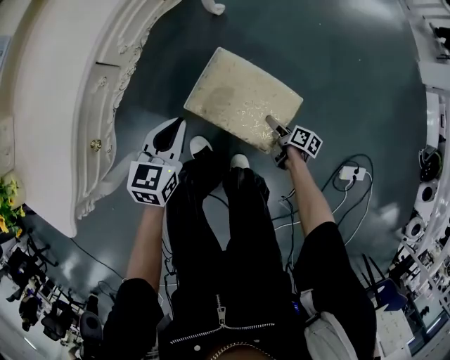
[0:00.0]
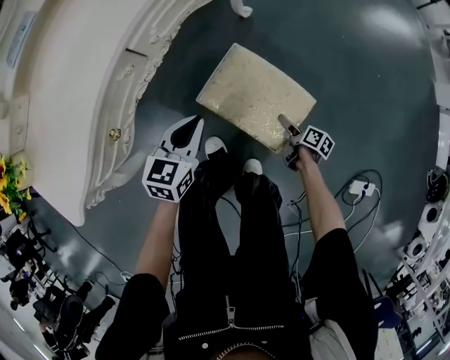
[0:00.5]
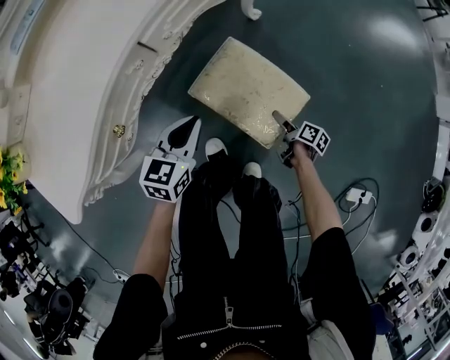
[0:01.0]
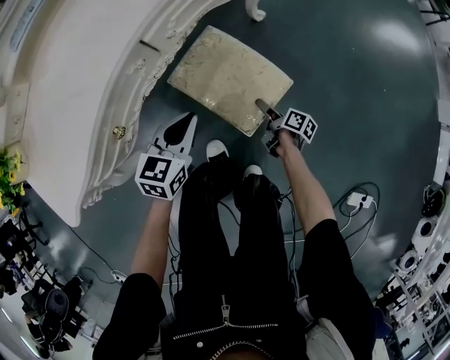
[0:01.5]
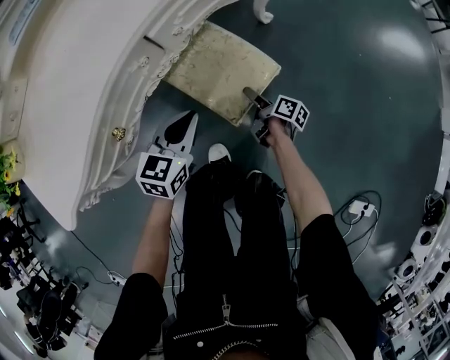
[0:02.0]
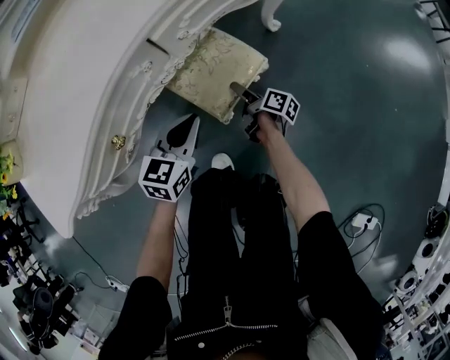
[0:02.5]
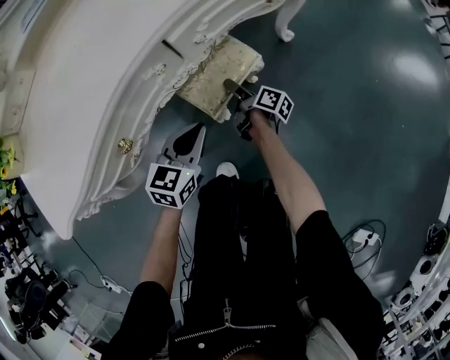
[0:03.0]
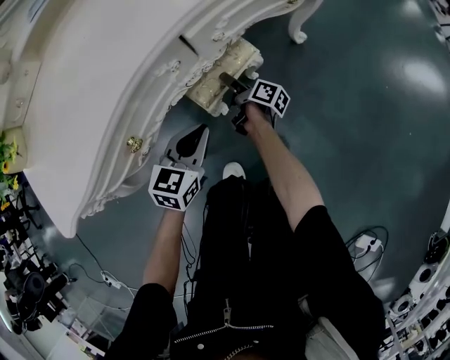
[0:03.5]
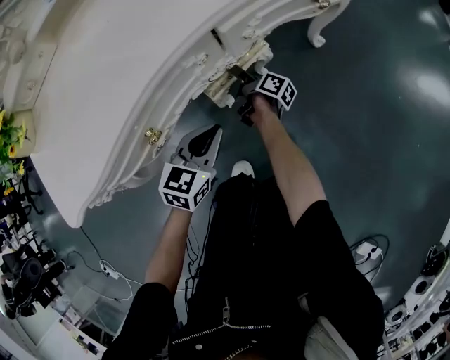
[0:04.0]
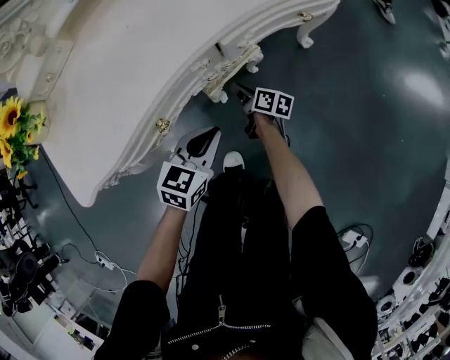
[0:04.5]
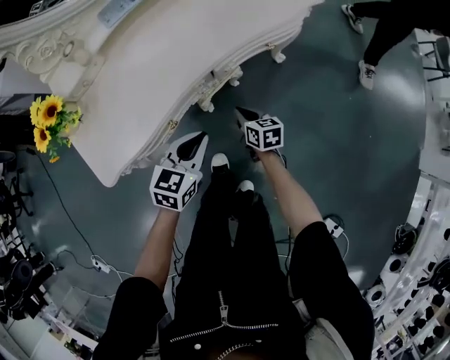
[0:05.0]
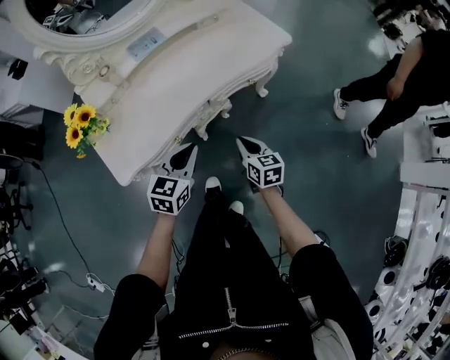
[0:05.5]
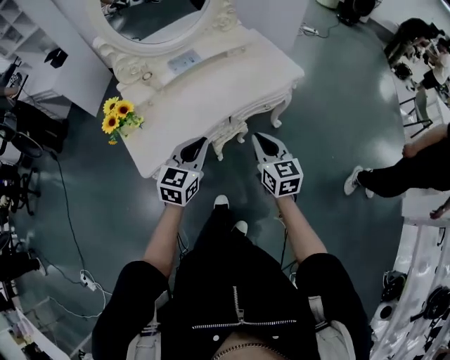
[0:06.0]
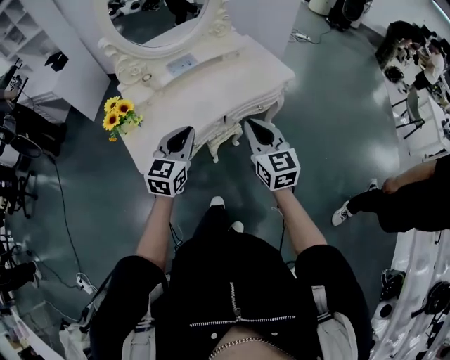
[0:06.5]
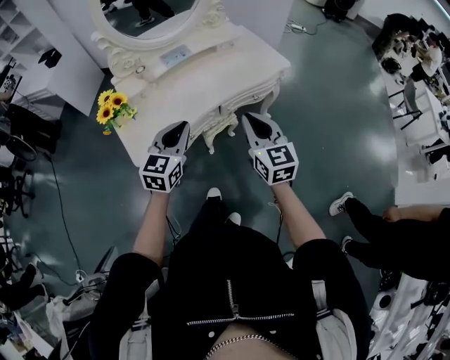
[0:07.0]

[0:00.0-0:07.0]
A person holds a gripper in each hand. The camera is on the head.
0:00.0 to 0:02.0: The left gripper travels to the left by some 10 cm, while the right gripper heads to the left and forward, covering about 30 cm, and turns by about 20 degrees.
0:02.0 to 0:03.5: The right gripper shifts roughly 20 cm to the left and forward. The left gripper goes about 5 cm downward.
0:03.5 to 0:05.0: The right gripper shifts about 25 cm upward and backward, twists about 50 degrees counterclockwise, seen from behind, and closes. Meanwhile the left gripper moves upward, about 20 cm.
0:05.0 to 0:07.0: The right gripper travels upward by roughly 50 cm, and turns by about 40 degrees. The left gripper travels upward by about 30 cm, and changes its angle by roughly 20 degrees.

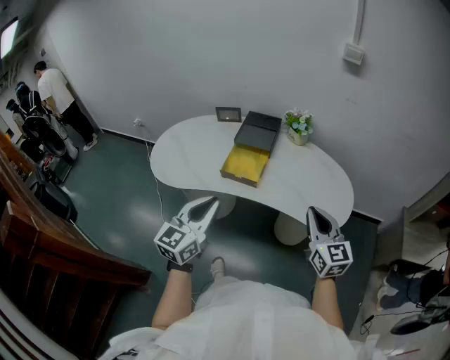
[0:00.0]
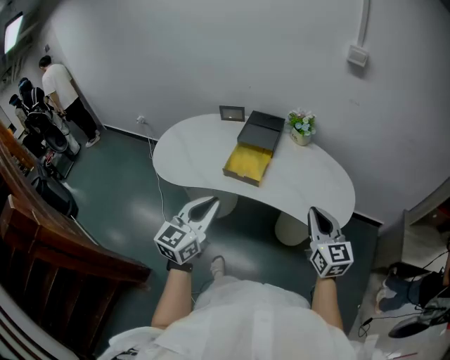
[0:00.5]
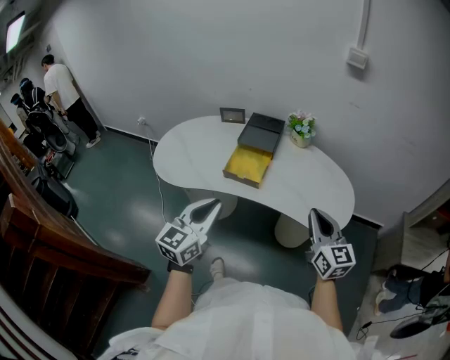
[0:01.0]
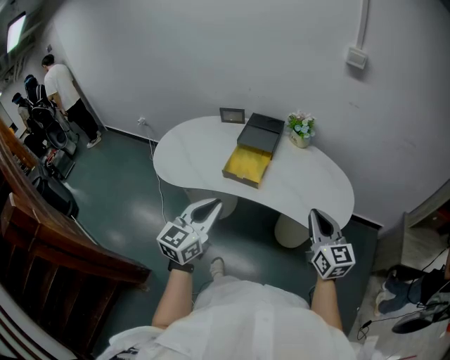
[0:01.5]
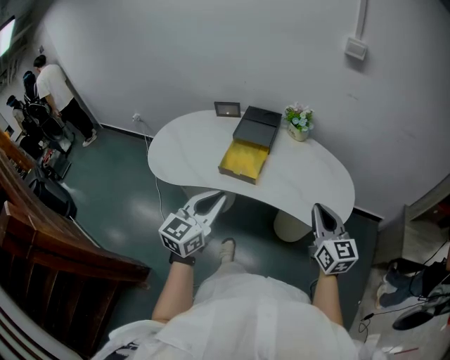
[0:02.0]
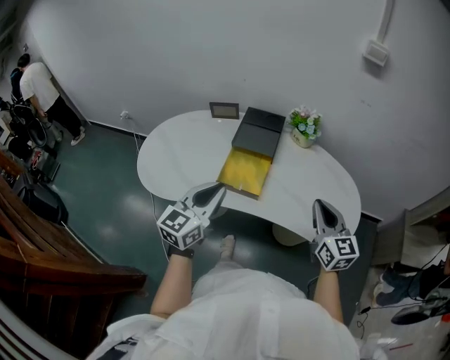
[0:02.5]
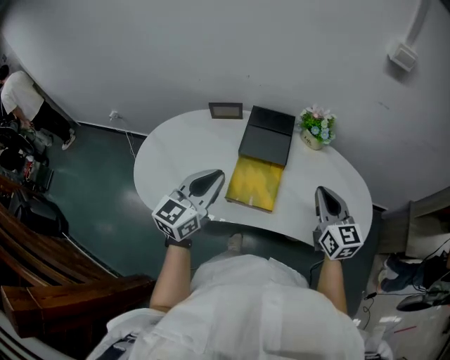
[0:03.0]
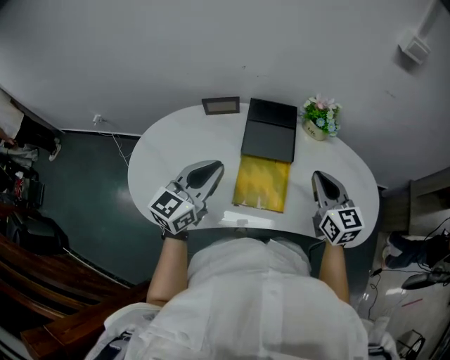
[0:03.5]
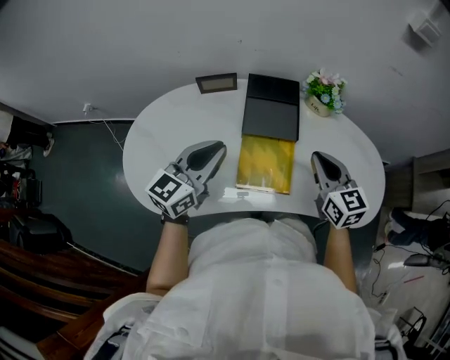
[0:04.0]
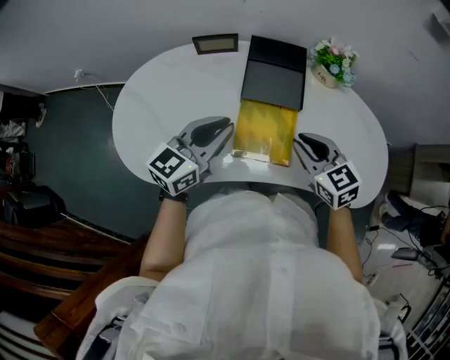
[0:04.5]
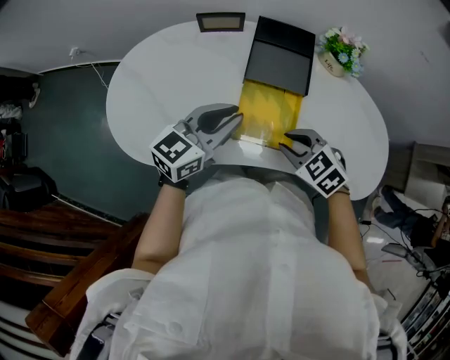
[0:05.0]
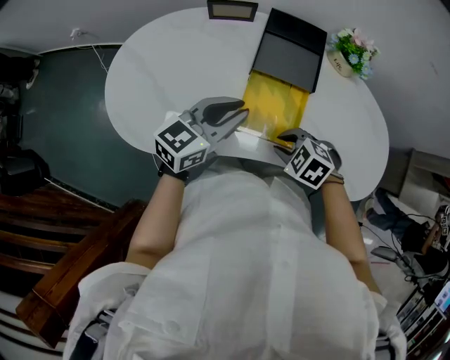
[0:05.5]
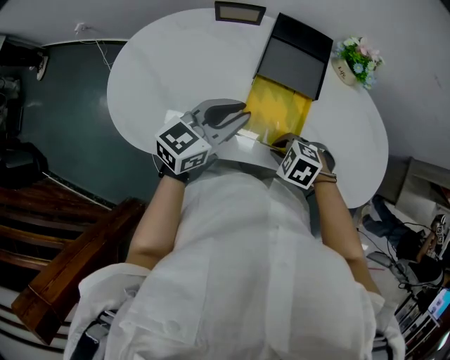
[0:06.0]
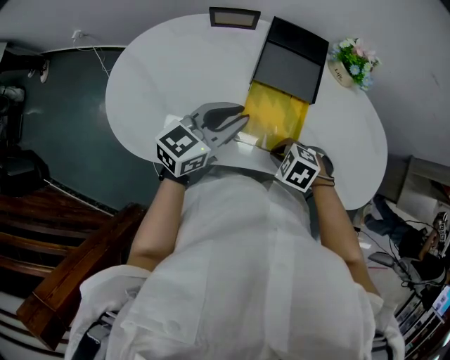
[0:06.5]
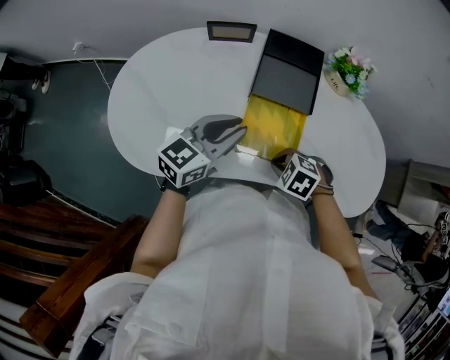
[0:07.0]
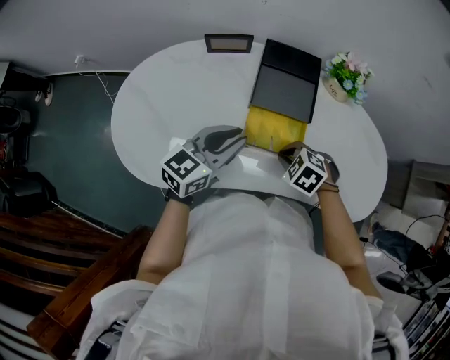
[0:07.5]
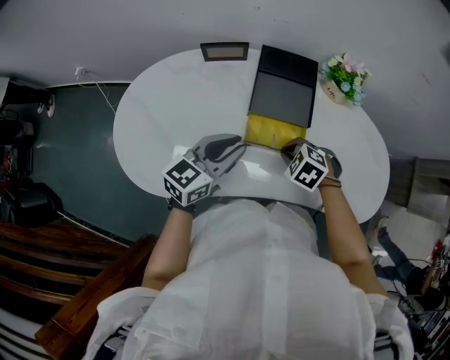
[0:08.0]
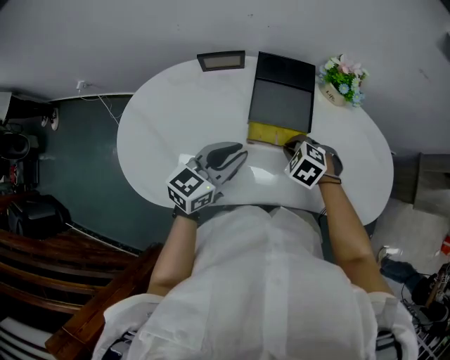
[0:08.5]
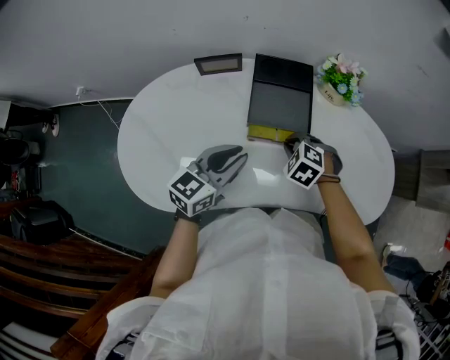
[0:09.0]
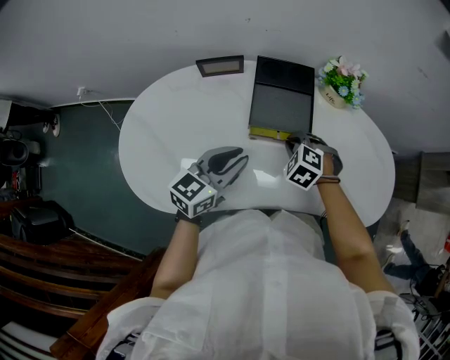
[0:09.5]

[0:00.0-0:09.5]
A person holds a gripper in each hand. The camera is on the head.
0:00.0 to 0:02.0: There are only small adjustments of the grippers.
0:02.0 to 0:04.0: Both grippers move forward and to the left, approximately 35 cm. The left gripper changes its angle by roughly 20 degrees.
0:04.0 to 0:05.5: The right gripper goes about 20 cm downward, to the left and backward, and angles its fingers downward, by approximately 50 degrees. The left gripper goes about 10 cm downward.
0:05.5 to 0:07.5: The right gripper ends up about 5 cm from where it was.
0:07.5 to 0:09.5: The right gripper shifts about 10 cm forward.

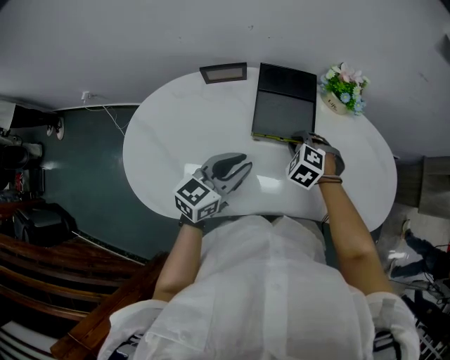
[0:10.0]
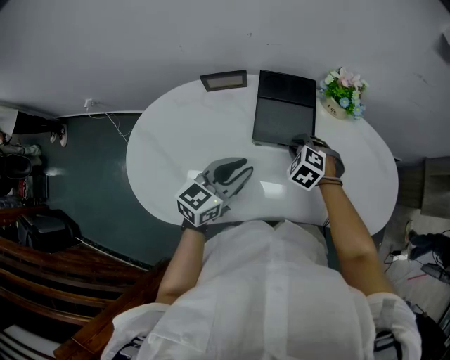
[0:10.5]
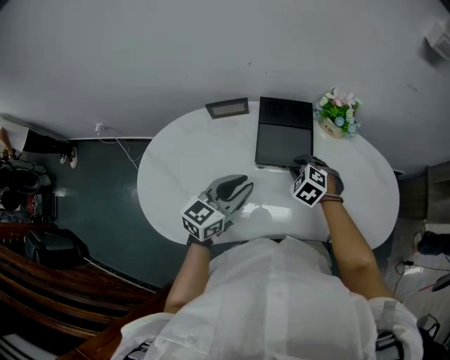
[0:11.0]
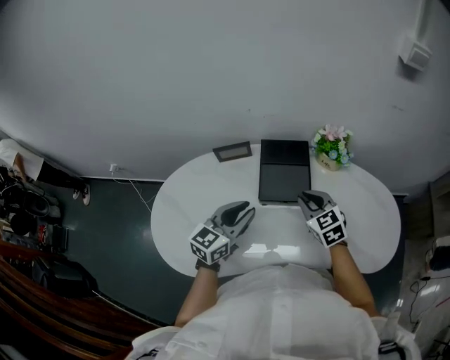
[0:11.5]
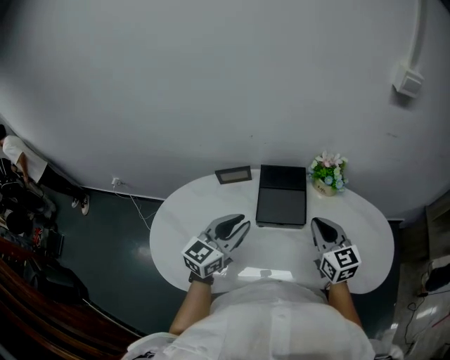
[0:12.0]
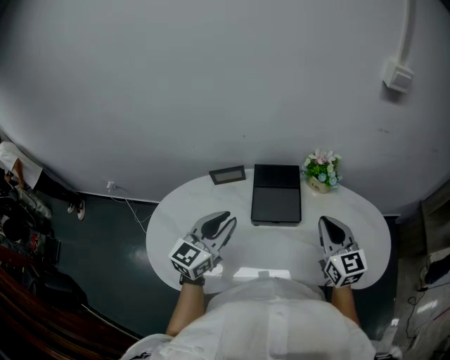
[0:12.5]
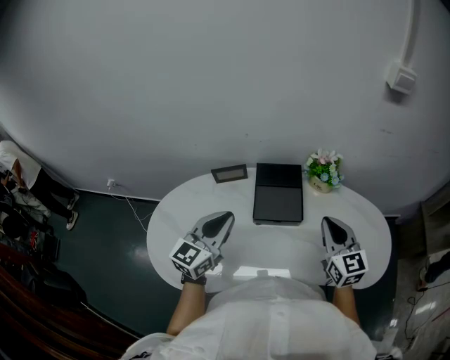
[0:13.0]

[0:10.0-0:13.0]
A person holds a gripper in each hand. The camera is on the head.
0:10.0 to 0:11.5: The left gripper is displaced upward by approximately 5 cm. Meanwhile the right gripper goes some 10 cm upward, and angles its fingers upward, by some 30 degrees.
0:11.5 to 0:13.0: The right gripper shifts approximately 15 cm upward and to the right, and changes its angle by some 30 degrees, while the left gripper moves upward, about 5 cm.

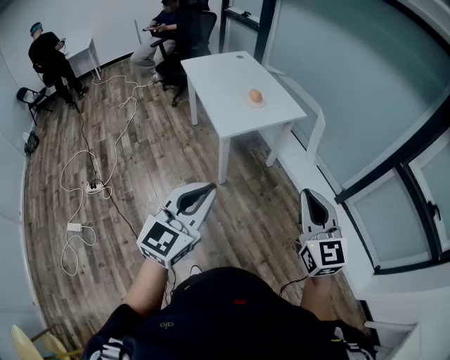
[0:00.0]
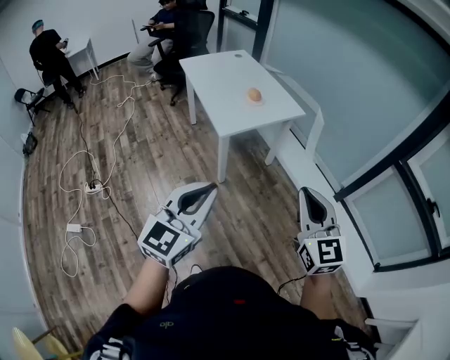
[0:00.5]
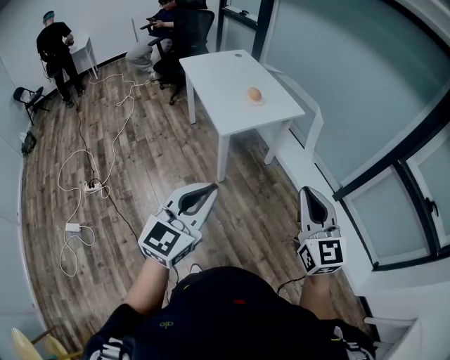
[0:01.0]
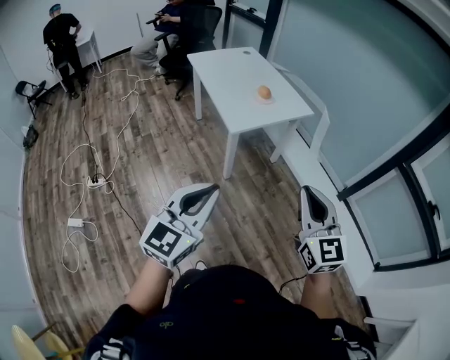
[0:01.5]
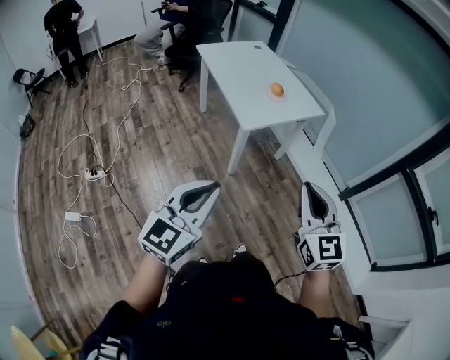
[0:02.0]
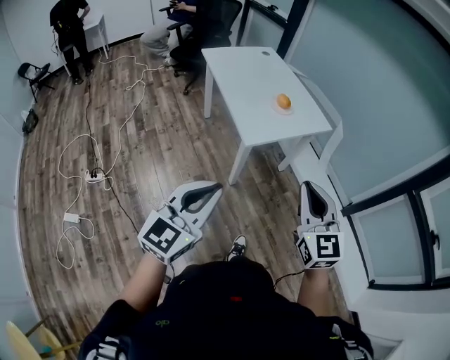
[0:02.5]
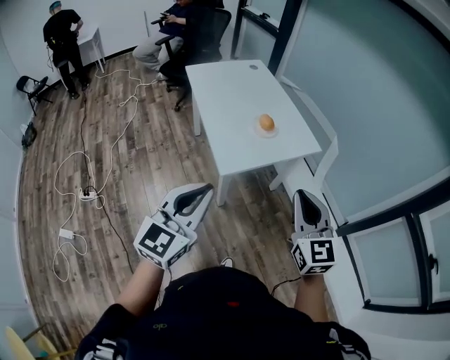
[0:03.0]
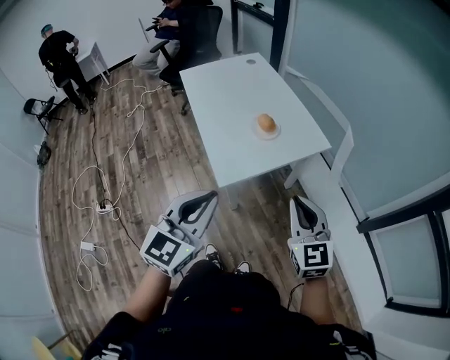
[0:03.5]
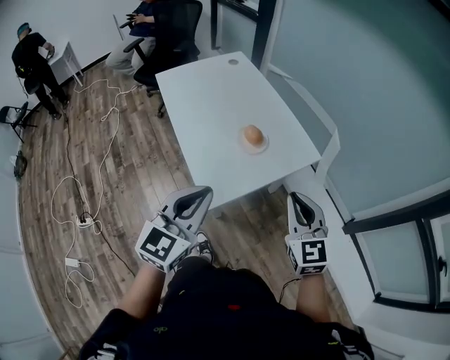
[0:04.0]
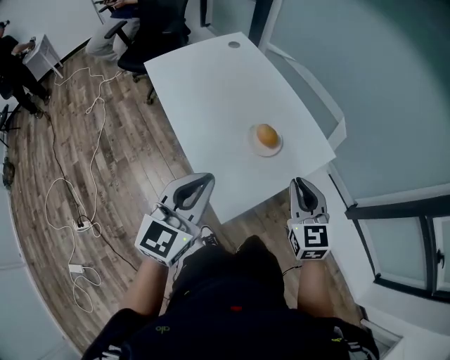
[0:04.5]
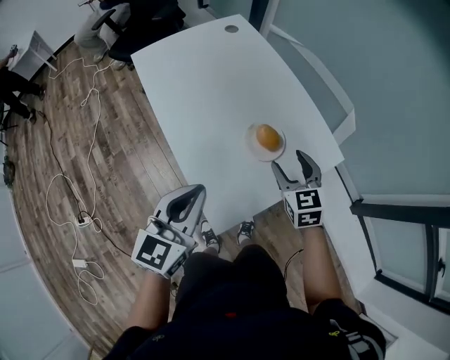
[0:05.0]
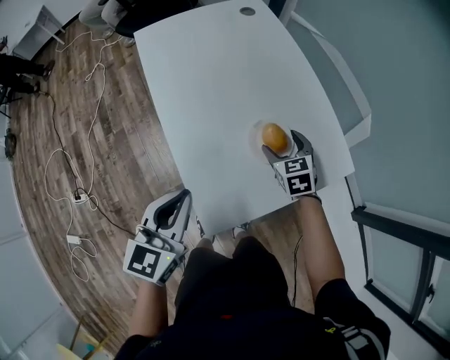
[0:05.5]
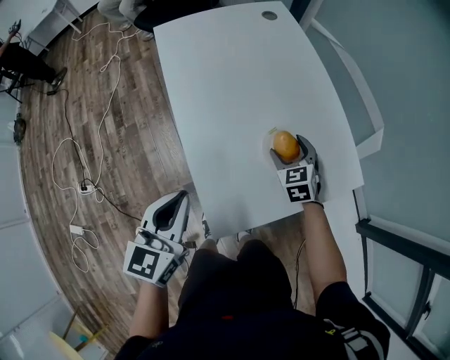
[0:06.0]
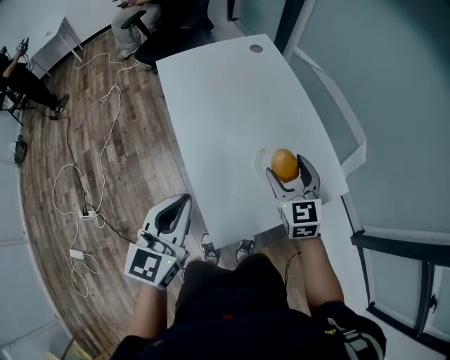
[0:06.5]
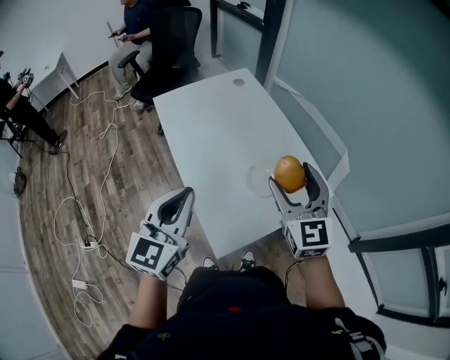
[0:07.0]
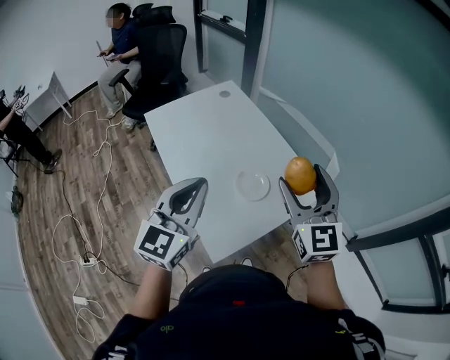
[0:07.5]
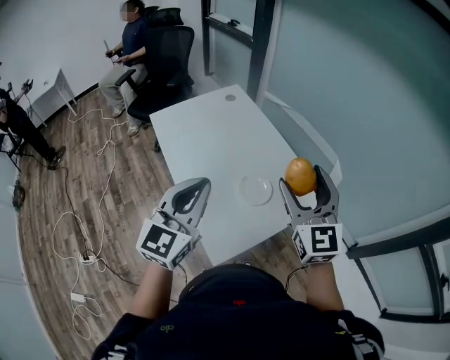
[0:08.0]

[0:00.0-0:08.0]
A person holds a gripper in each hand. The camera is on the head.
0:00.0 to 0:02.0: Both grippers move to the left, roughly 15 cm.
0:02.0 to 0:04.0: The two grippers travel together, forward, approximately 50 cm.
0:04.0 to 0:06.0: The left gripper travels forward, downward and to the left by some 30 cm, and turns by some 30 degrees, while the right gripper goes some 50 cm forward and downward, rotates some 30 degrees, and opens.
0:06.0 to 0:08.0: The right gripper moves upward, approximately 40 cm, and angles its fingers upward, by roughly 40 degrees. Meanwhile the left gripper heads upward, covering some 20 cm, and rotates about 30 degrees.
